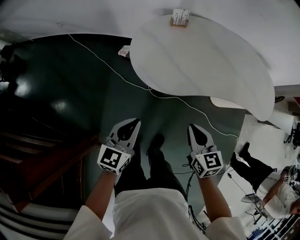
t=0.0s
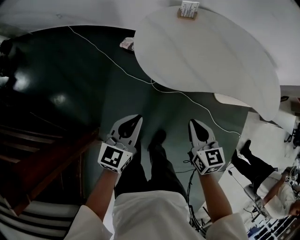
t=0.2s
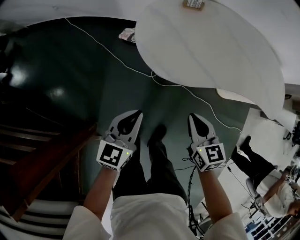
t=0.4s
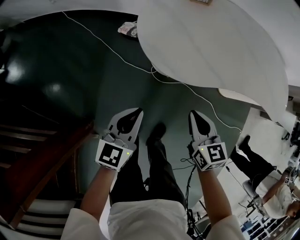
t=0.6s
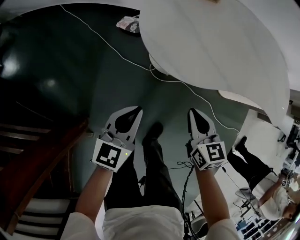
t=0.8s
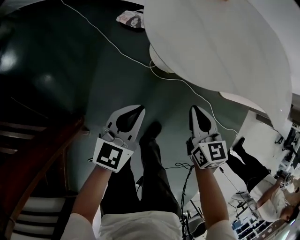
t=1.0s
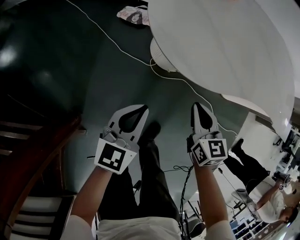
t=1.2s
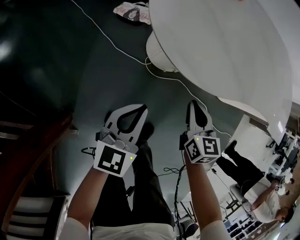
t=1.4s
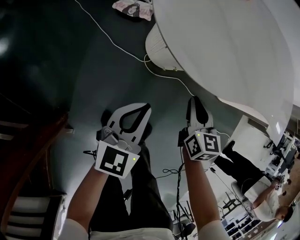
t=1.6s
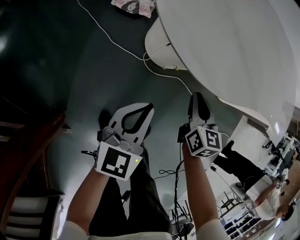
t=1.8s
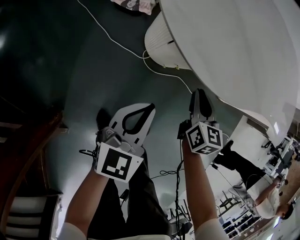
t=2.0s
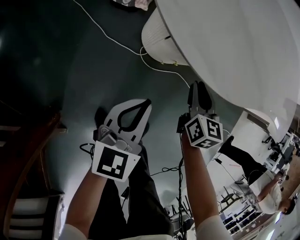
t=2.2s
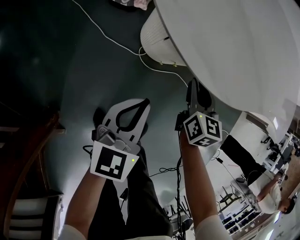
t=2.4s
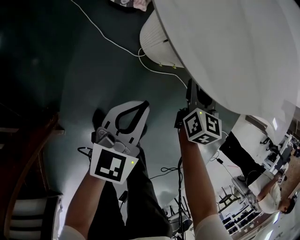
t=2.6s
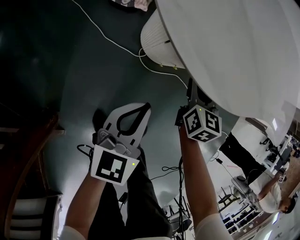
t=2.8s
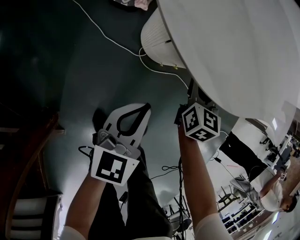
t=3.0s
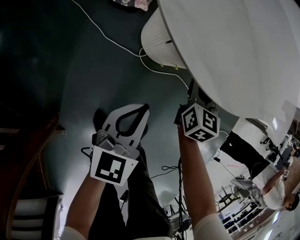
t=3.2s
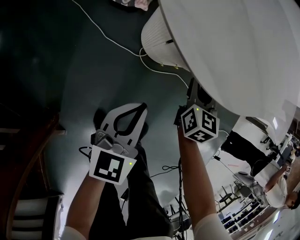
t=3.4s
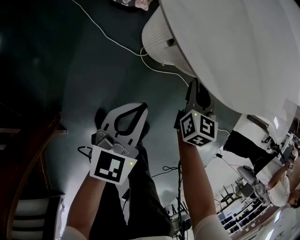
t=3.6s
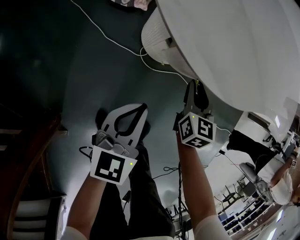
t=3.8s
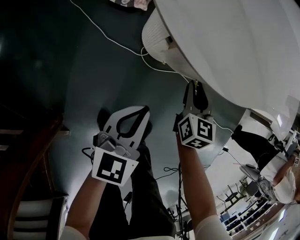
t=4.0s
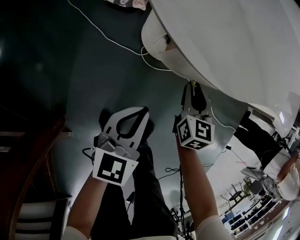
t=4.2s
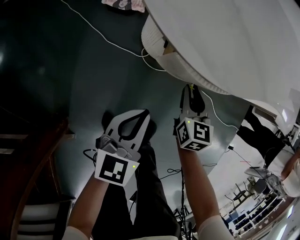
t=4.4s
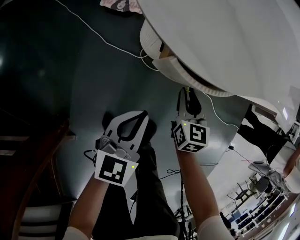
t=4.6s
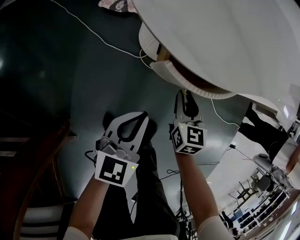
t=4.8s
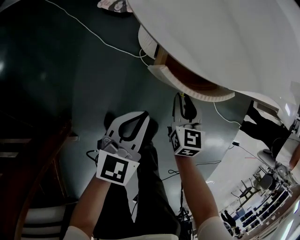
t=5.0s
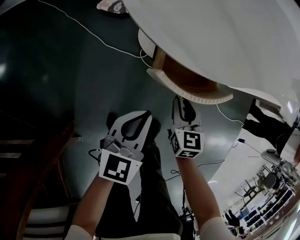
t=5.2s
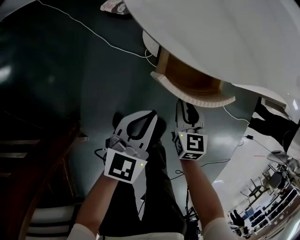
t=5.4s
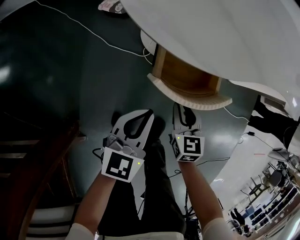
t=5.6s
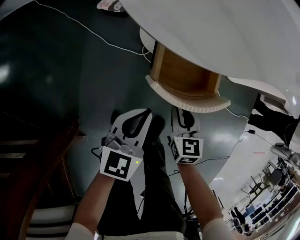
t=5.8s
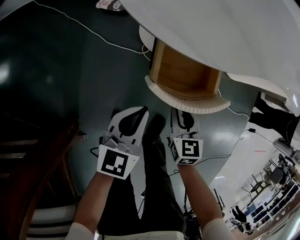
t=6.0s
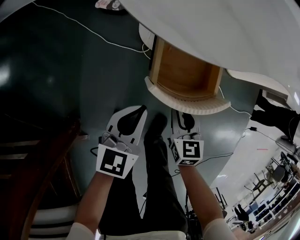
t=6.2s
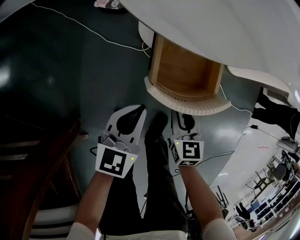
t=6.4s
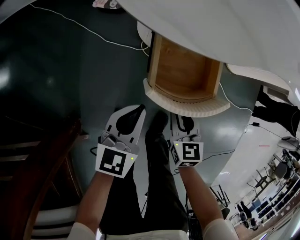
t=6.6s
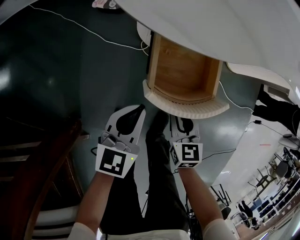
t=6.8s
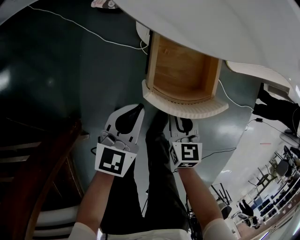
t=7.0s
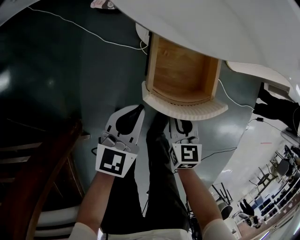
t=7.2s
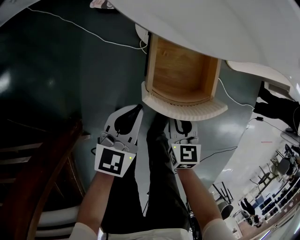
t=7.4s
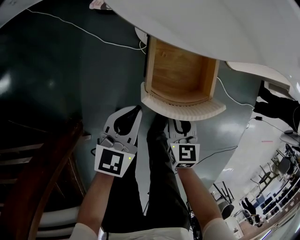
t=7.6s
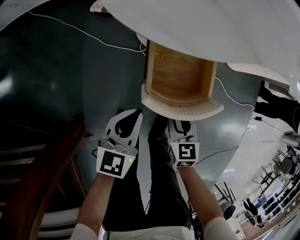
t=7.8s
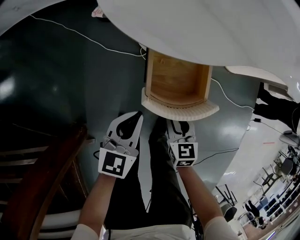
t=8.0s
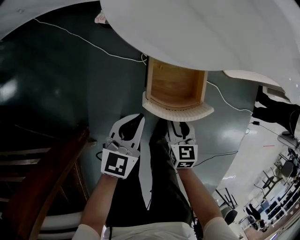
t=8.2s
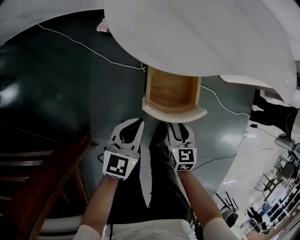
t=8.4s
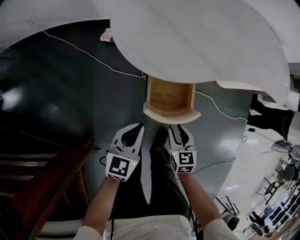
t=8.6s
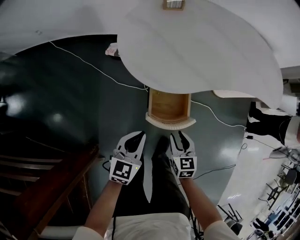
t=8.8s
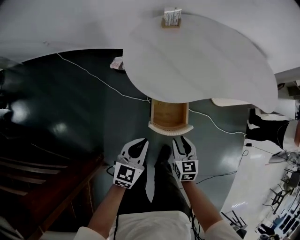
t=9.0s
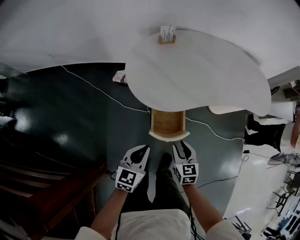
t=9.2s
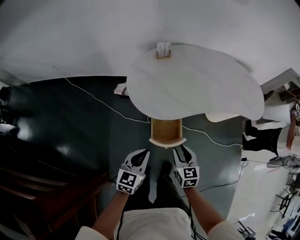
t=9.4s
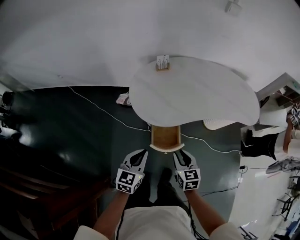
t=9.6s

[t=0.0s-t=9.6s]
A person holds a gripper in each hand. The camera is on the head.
t=0.0s to t=1.6s: Both grippers travel together downward, about 25 cm.
t=1.6s to t=3.2s: The left gripper heads downward, covering roughly 5 cm; the right gripper heads forward and downward, covering about 10 cm.
t=3.2s to t=4.8s: The right gripper goes about 10 cm backward, while the left gripper changes place by about 5 cm.
t=4.8s to t=6.4s: The right gripper heads backward, covering approximately 10 cm.
t=6.4s to t=8.0s: There are only small adjustments of the grippers.
t=8.0s to t=9.6s: The two grippers go some 35 cm upward.

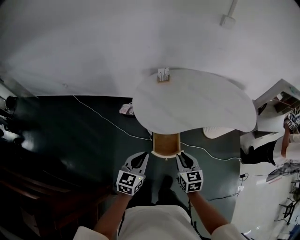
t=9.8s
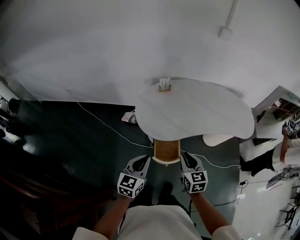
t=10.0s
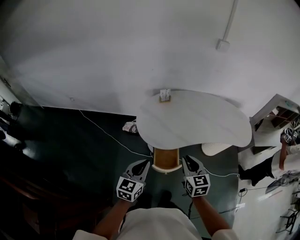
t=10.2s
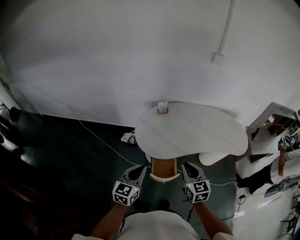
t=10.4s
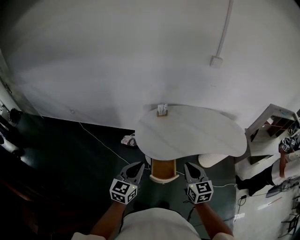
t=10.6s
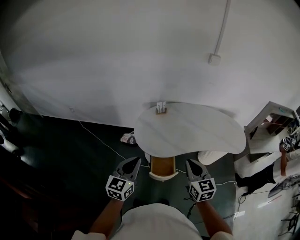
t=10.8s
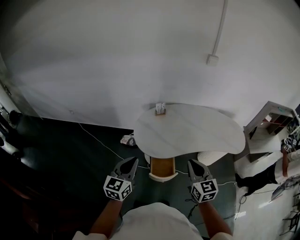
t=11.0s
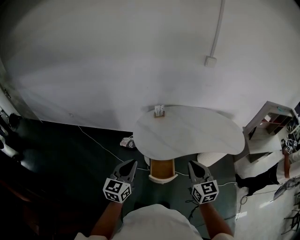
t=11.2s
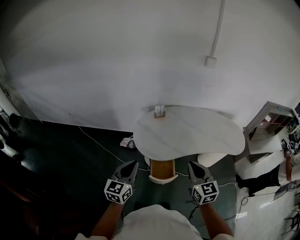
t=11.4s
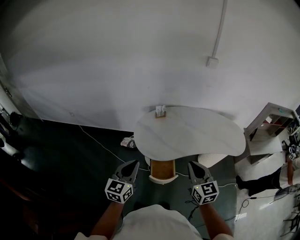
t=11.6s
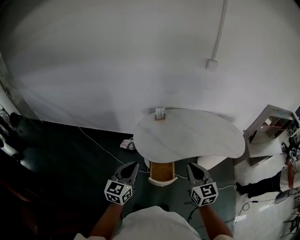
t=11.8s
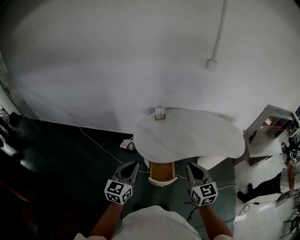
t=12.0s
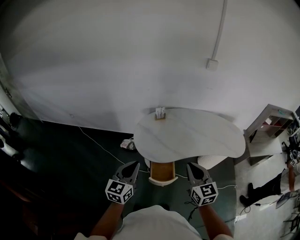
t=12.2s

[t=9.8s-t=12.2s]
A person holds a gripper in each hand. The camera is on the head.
t=9.8s to t=11.0s: The two grippers go some 20 cm upward.
t=11.0s to t=12.2s: Both grippers stay put.

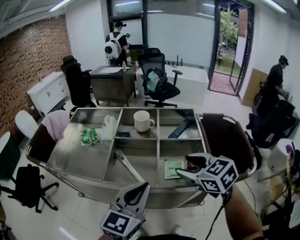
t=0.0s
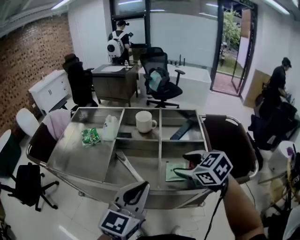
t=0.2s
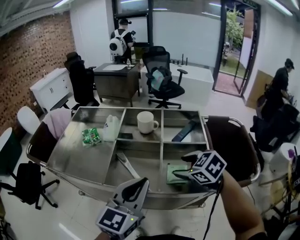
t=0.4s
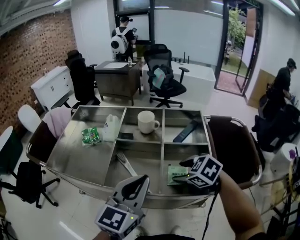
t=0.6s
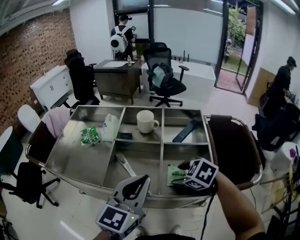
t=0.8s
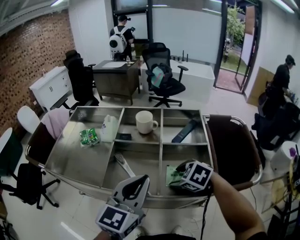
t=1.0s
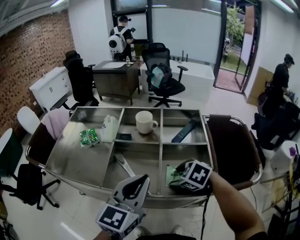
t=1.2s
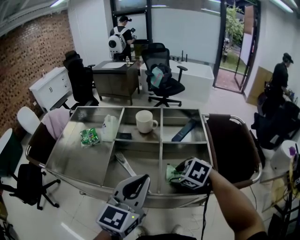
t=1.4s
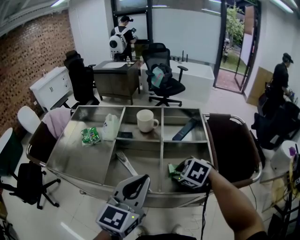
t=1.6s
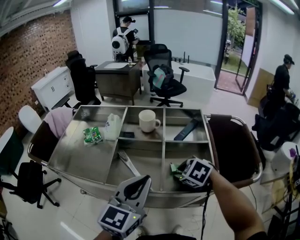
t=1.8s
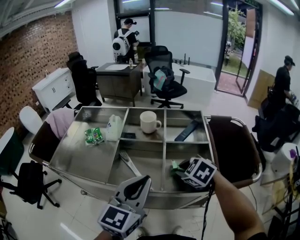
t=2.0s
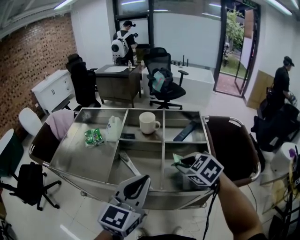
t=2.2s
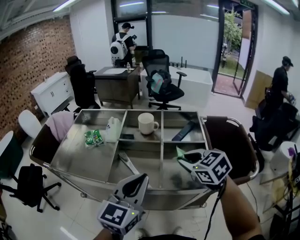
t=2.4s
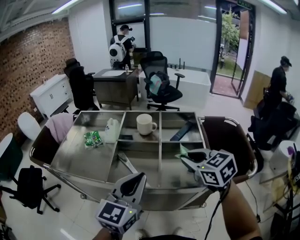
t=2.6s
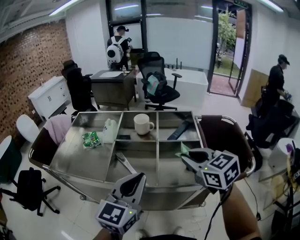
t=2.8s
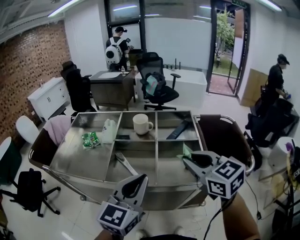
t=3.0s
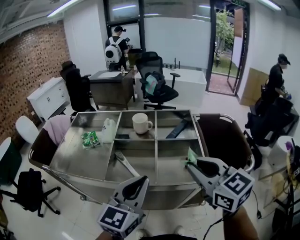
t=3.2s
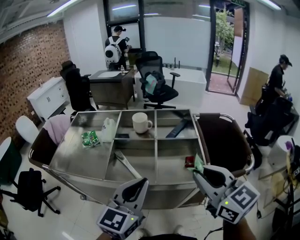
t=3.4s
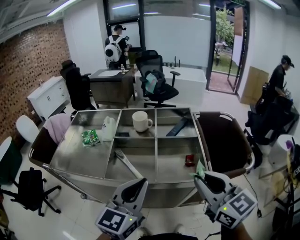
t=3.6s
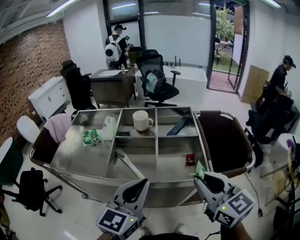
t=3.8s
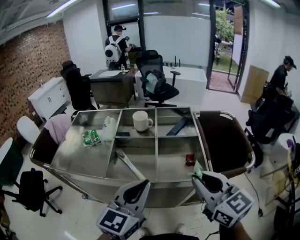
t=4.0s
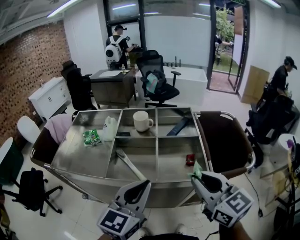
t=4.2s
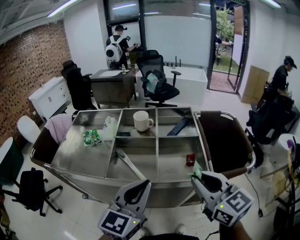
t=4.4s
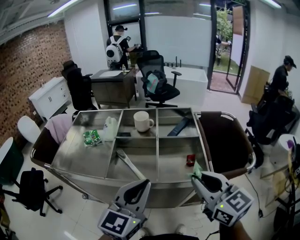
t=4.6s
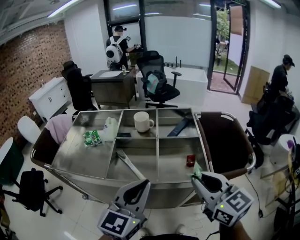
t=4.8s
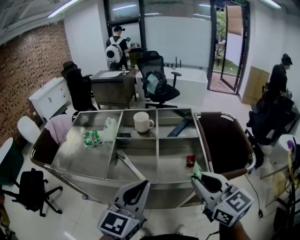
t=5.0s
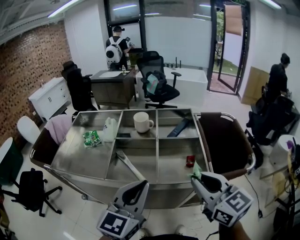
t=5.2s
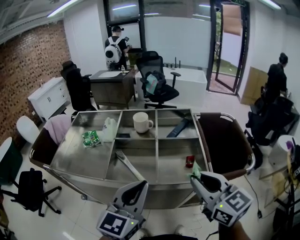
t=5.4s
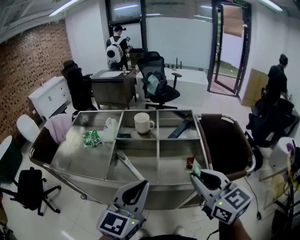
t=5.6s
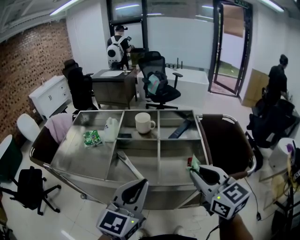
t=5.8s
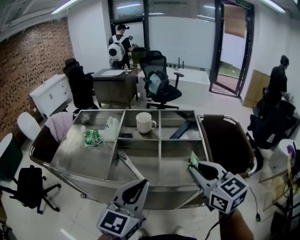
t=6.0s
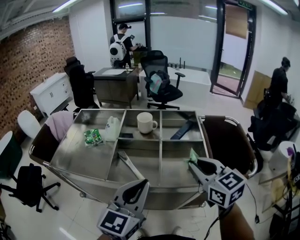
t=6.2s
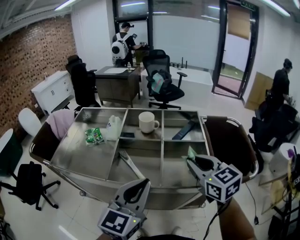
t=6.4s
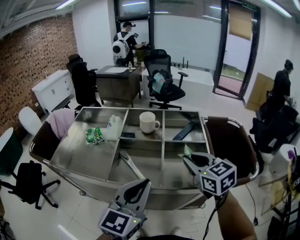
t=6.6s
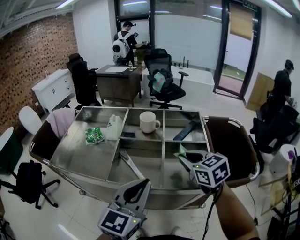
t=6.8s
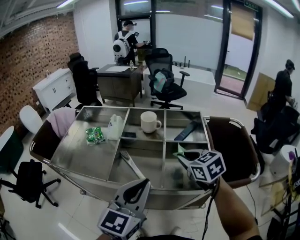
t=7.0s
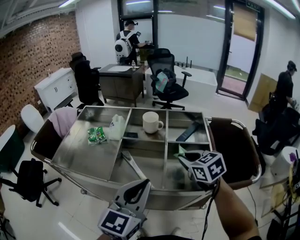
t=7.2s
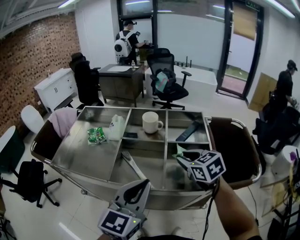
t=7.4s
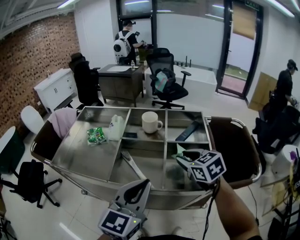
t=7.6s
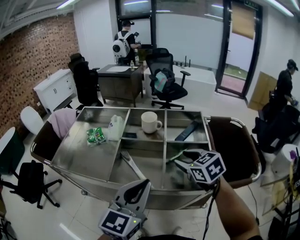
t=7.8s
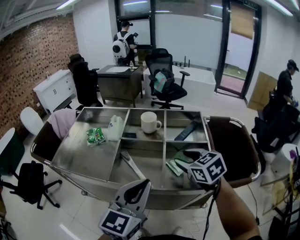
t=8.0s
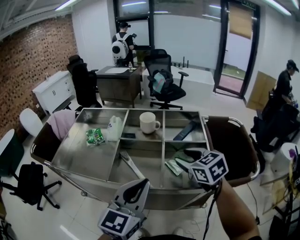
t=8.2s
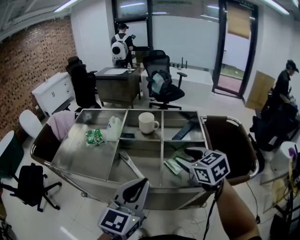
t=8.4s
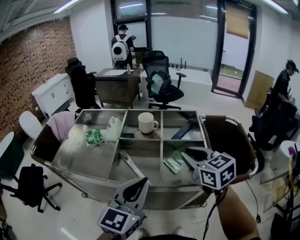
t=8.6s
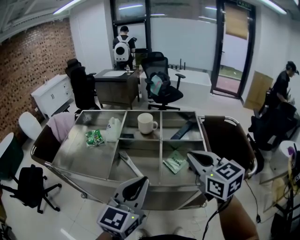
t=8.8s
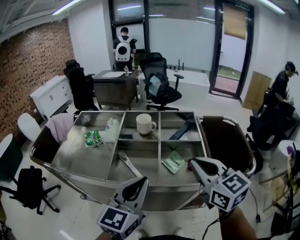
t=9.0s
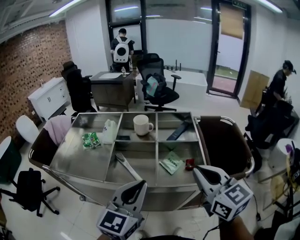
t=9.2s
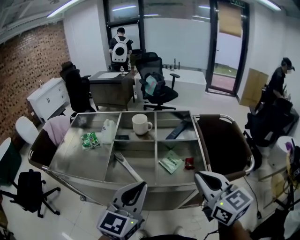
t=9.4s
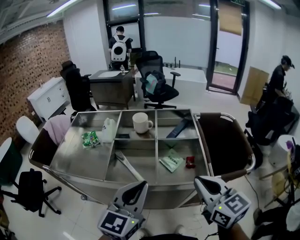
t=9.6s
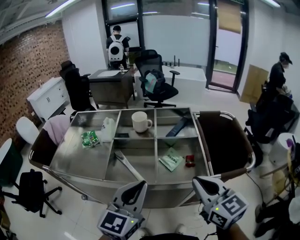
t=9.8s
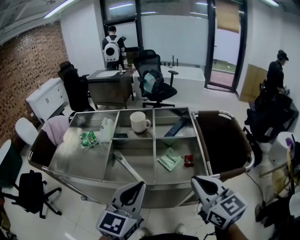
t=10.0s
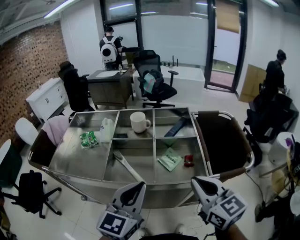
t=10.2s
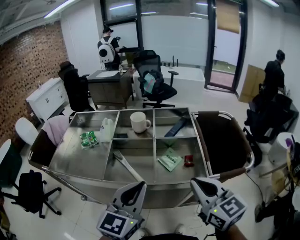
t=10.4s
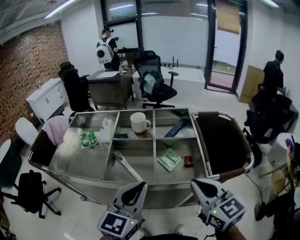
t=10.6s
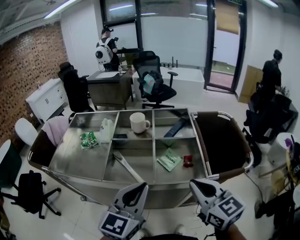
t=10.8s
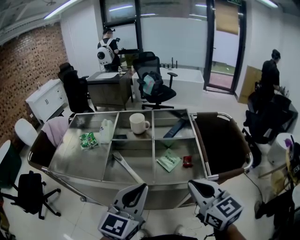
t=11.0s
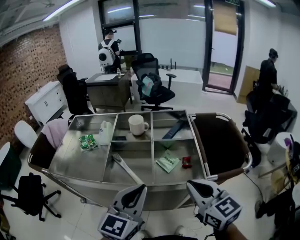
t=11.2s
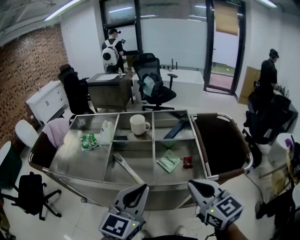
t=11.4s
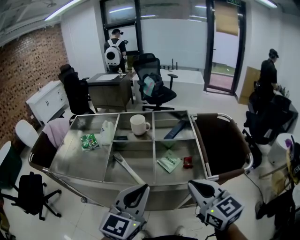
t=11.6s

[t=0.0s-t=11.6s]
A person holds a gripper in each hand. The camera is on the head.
t=0.0s to t=1.4s: The left gripper moves forward, some 5 cm, while the right gripper goes roughly 10 cm downward, and rotates some 30 degrees.
t=1.4s to t=2.8s: The right gripper heads upward, covering roughly 15 cm, angles its fingers upward, by approximately 40 degrees, and closes up.
t=2.8s to t=4.4s: The right gripper heads backward, covering some 10 cm.
t=4.4s to t=5.8s: The grippers stay close to where they were, moving slightly.
t=5.8s to t=7.2s: The right gripper heads forward and downward, covering approximately 20 cm, and turns by some 20 degrees.
t=7.2s to t=8.8s: The right gripper goes roughly 15 cm upward and backward, swivels about 20 degrees, and opens, then closes once more.
t=8.8s to t=10.2s: The right gripper moves backward, approximately 10 cm.
t=10.2s to t=11.6s: The grippers make only small movements.
